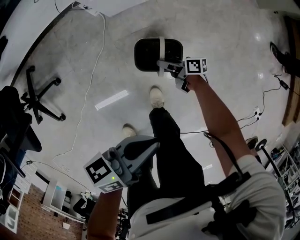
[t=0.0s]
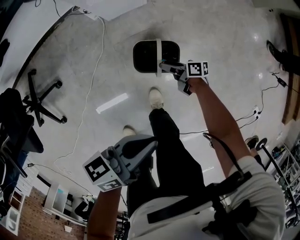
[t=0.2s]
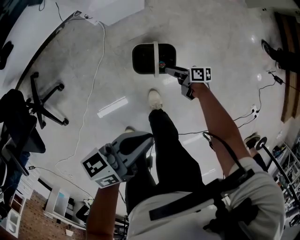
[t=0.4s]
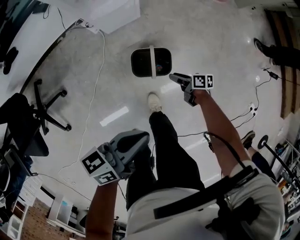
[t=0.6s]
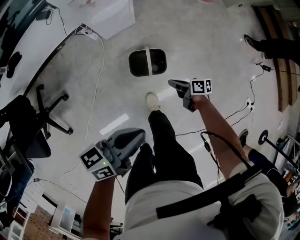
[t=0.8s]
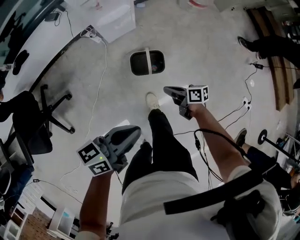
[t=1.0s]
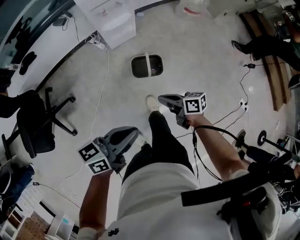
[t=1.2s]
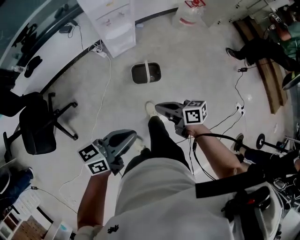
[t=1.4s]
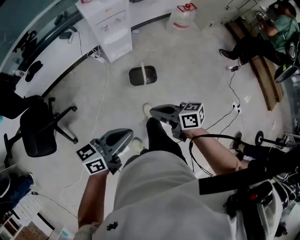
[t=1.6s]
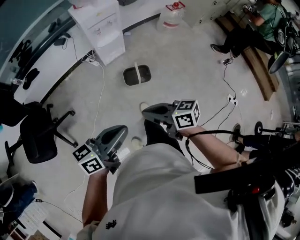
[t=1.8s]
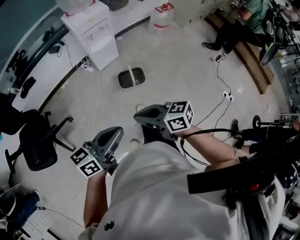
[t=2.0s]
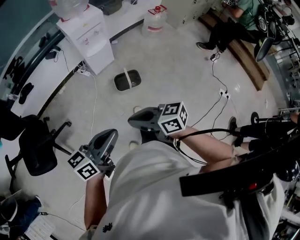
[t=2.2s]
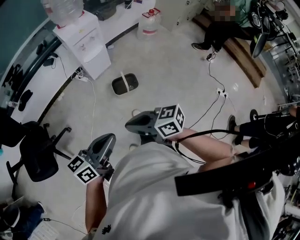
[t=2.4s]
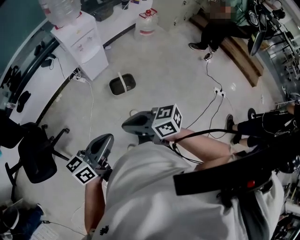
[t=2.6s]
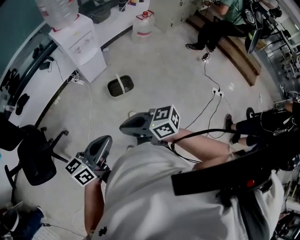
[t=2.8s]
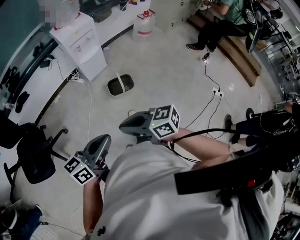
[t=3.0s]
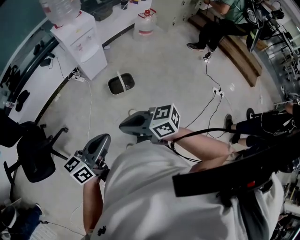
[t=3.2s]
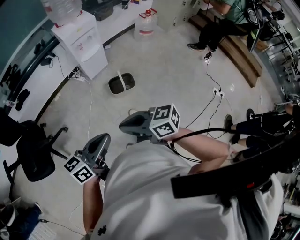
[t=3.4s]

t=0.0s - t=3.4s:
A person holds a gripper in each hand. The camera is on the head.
t=0.0s - t=1.6s: The left gripper heads upward, covering approximately 25 cm, and rotates some 20 degrees. Meanwhile the right gripper heads upward, covering roughly 50 cm, changes its angle by roughly 30 degrees, and closes its fingers.
t=1.6s - t=3.4s: The right gripper changes place by roughly 15 cm; the left gripper ends up some 10 cm from where it was.

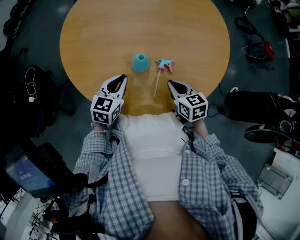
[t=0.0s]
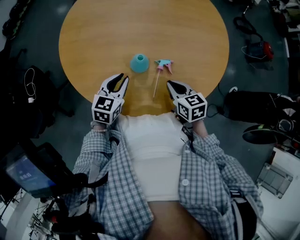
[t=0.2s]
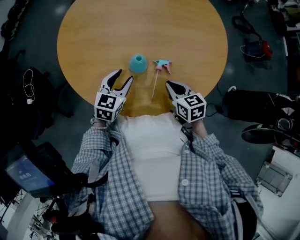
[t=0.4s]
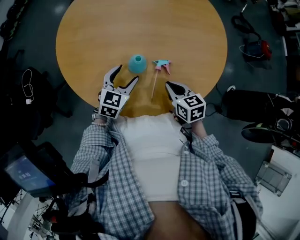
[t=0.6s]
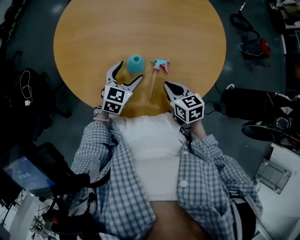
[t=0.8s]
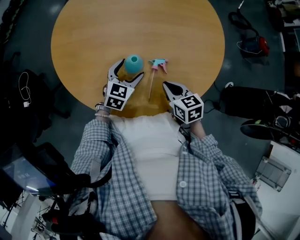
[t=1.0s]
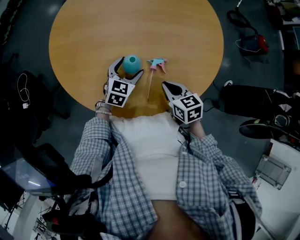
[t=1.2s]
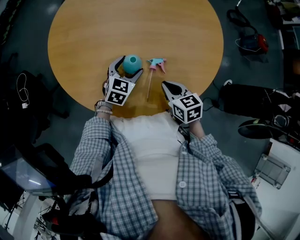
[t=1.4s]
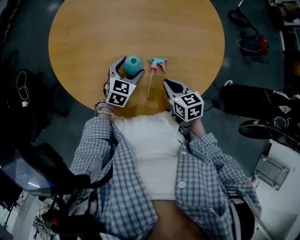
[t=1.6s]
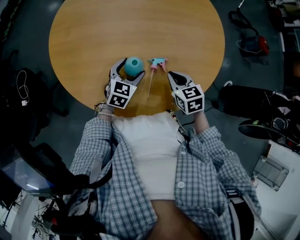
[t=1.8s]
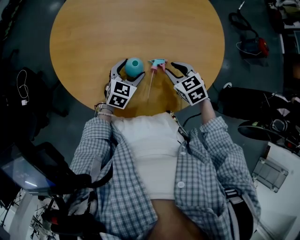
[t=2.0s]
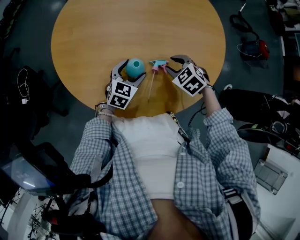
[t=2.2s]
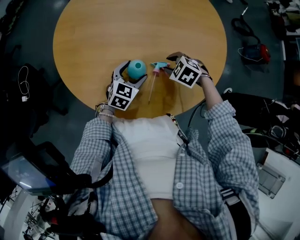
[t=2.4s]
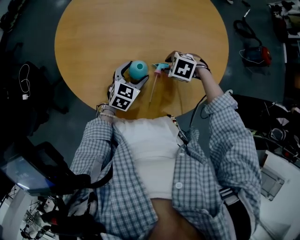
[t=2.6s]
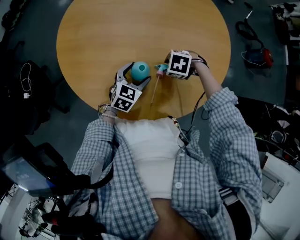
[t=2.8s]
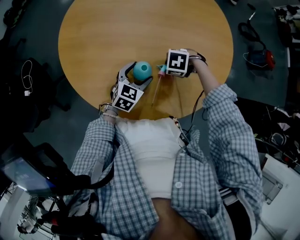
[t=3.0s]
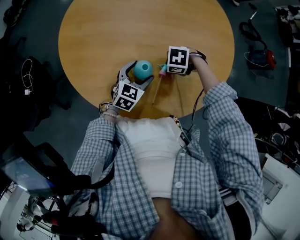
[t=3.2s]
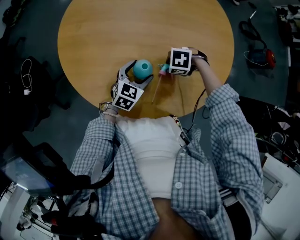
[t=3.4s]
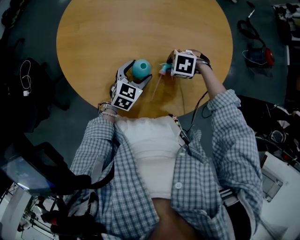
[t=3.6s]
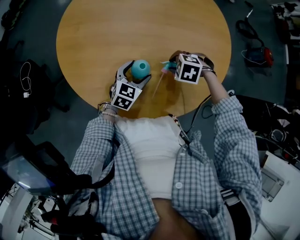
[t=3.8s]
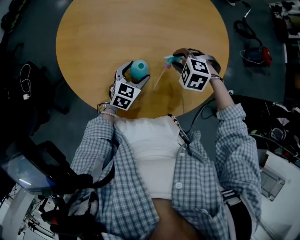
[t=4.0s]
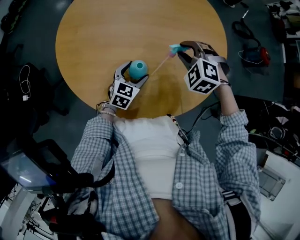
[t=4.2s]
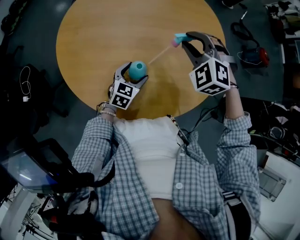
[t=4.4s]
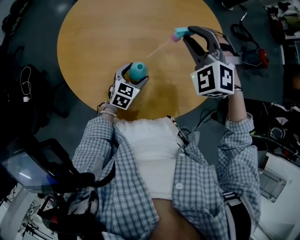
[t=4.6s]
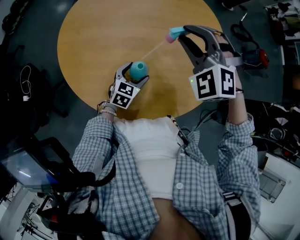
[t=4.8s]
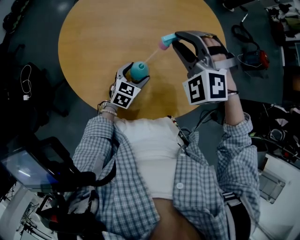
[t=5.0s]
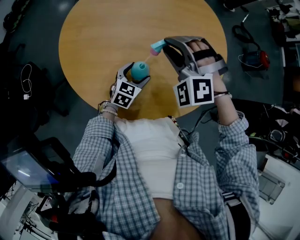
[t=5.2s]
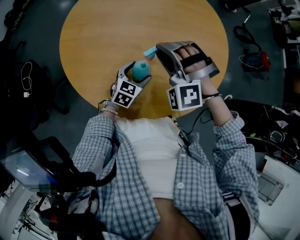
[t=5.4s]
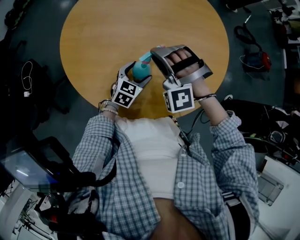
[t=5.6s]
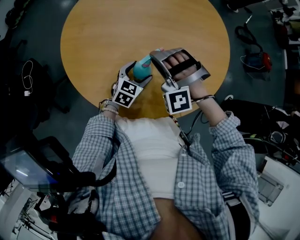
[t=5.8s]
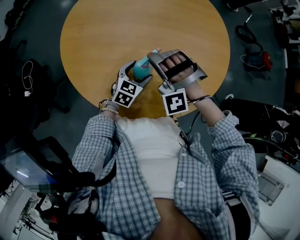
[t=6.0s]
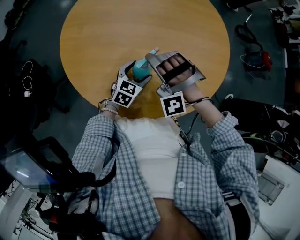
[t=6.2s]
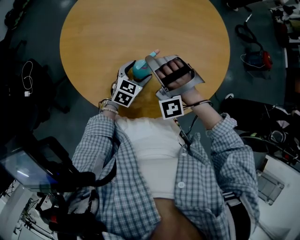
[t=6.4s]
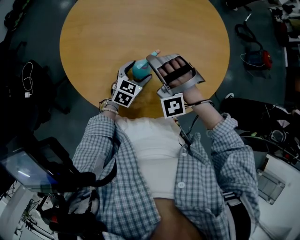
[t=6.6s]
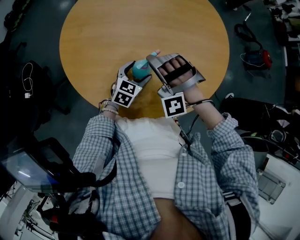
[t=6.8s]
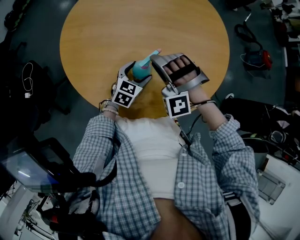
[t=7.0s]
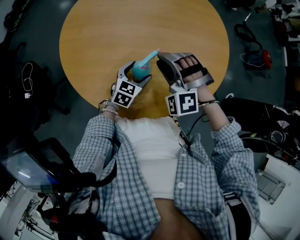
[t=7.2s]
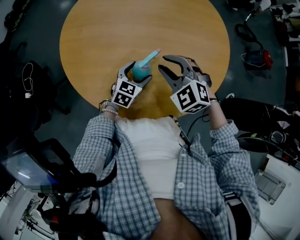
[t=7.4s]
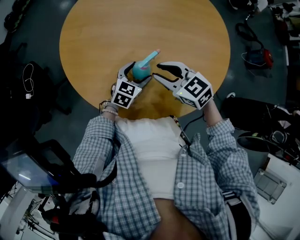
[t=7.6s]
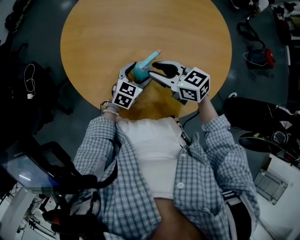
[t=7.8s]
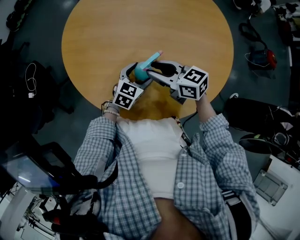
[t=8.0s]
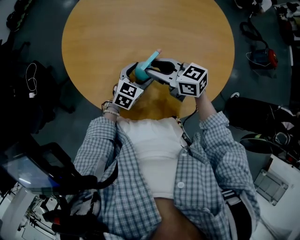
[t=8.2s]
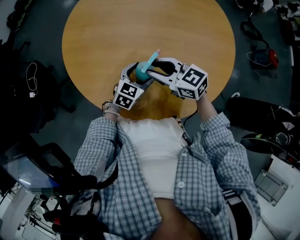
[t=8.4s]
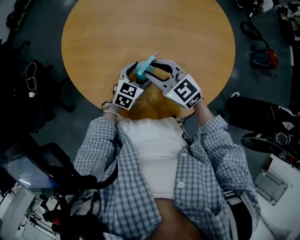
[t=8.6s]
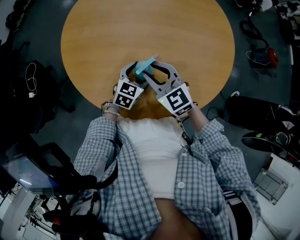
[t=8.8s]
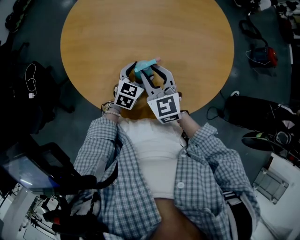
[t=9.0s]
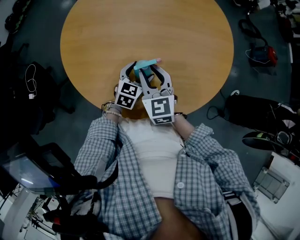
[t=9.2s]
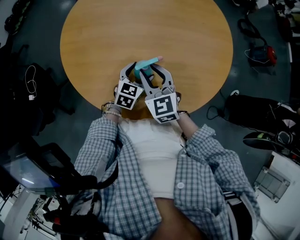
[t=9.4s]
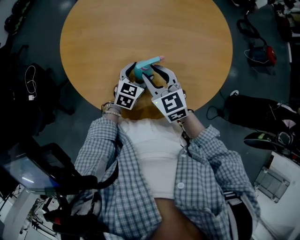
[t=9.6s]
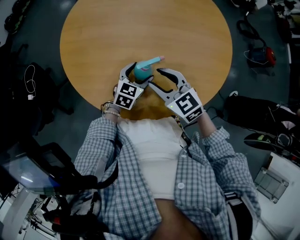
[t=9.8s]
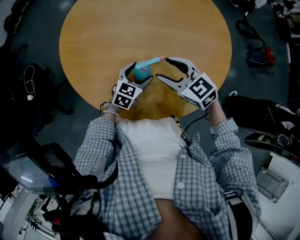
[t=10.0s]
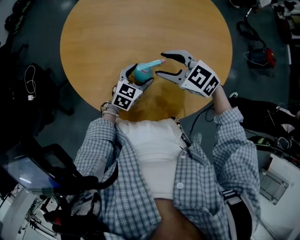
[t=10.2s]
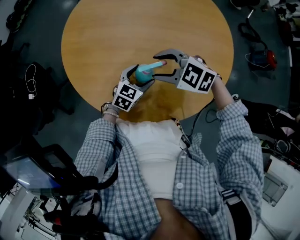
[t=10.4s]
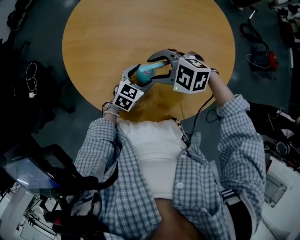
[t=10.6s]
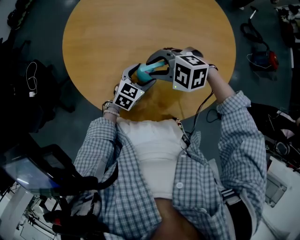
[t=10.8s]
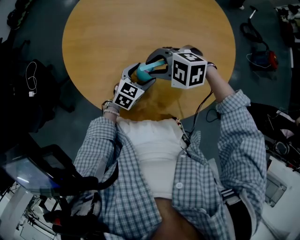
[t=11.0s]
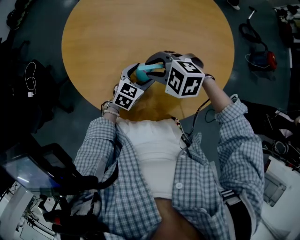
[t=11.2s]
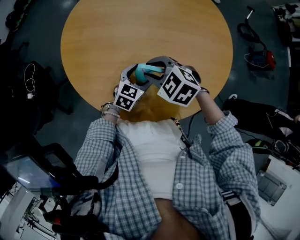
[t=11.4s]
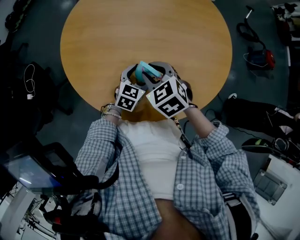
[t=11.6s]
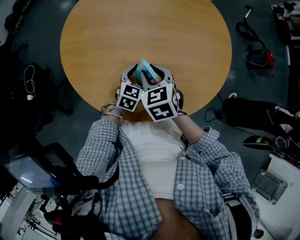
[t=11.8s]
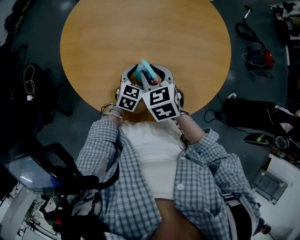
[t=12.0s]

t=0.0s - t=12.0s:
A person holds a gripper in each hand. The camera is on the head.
t=0.0s - t=1.6s: The left gripper moves to the right, forward and downward, approximately 10 cm, and opens its fingers.
t=1.6s - t=3.0s: The right gripper ends up roughly 10 cm from where it was, tilts its fingers approximately 30 degrees downward, and opens.
t=3.0s - t=4.4s: The right gripper is displaced upward by some 25 cm, and points its fingers about 40 degrees further upward.
t=4.4s - t=6.0s: The right gripper goes roughly 15 cm to the left, backward and downward, and turns by about 40 degrees.
t=6.0s - t=7.6s: The right gripper rolls clockwise, seen from behind, by about 80 degrees.
t=7.6s - t=9.0s: The right gripper rotates roughly 30 degrees.
t=9.0s - t=10.4s: The right gripper changes its angle by approximately 50 degrees, and opens its fingers.
t=10.4s - t=12.0s: The right gripper turns by about 50 degrees, and closes up.

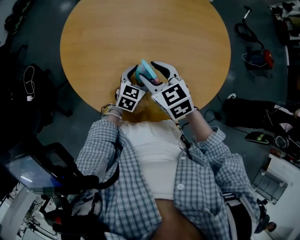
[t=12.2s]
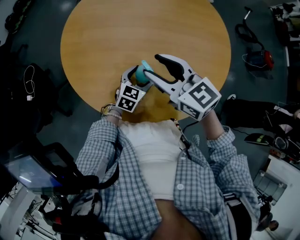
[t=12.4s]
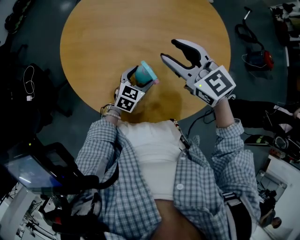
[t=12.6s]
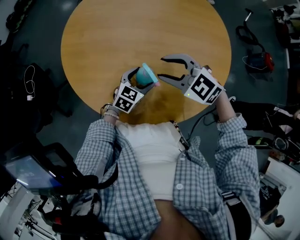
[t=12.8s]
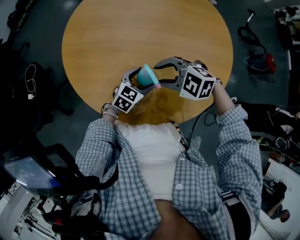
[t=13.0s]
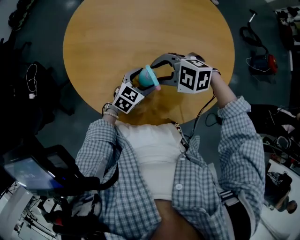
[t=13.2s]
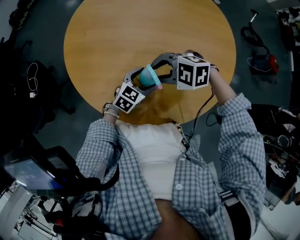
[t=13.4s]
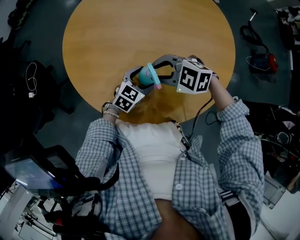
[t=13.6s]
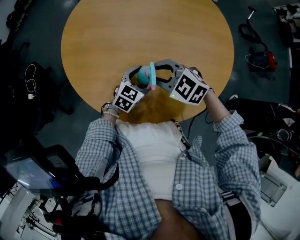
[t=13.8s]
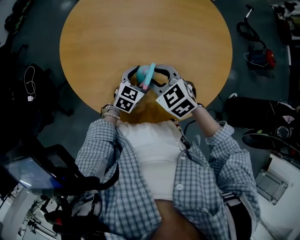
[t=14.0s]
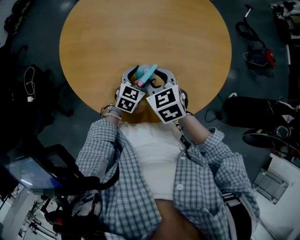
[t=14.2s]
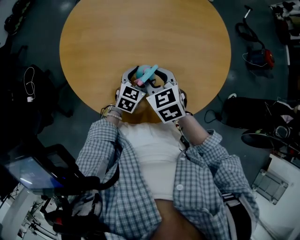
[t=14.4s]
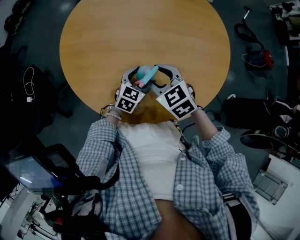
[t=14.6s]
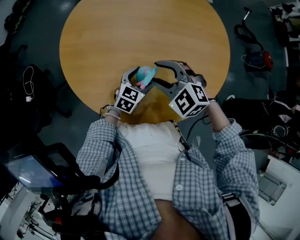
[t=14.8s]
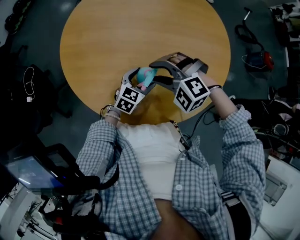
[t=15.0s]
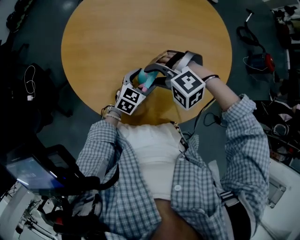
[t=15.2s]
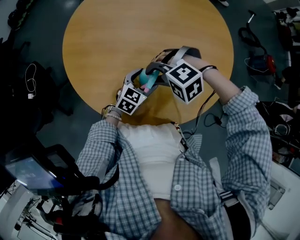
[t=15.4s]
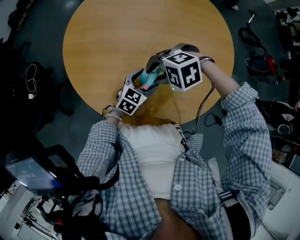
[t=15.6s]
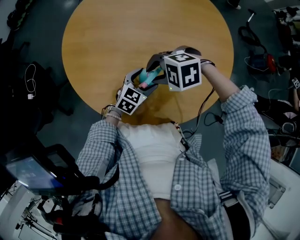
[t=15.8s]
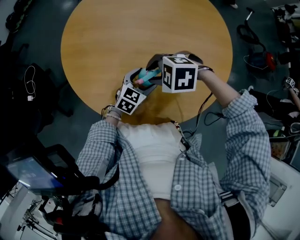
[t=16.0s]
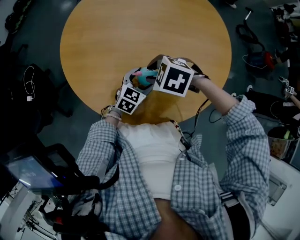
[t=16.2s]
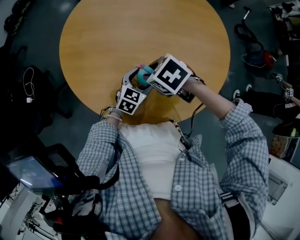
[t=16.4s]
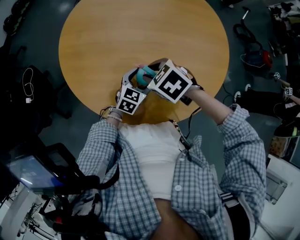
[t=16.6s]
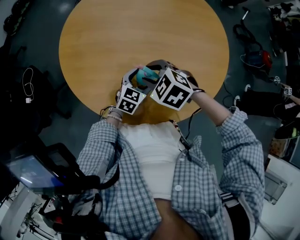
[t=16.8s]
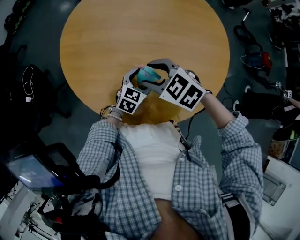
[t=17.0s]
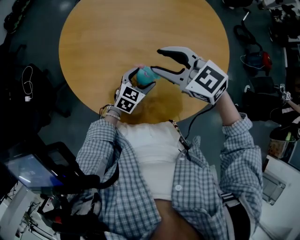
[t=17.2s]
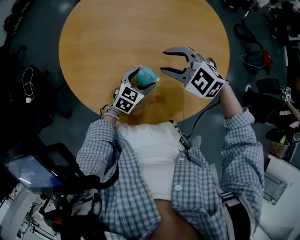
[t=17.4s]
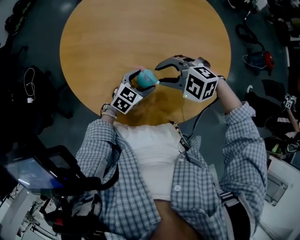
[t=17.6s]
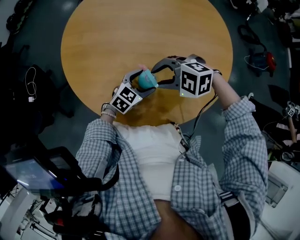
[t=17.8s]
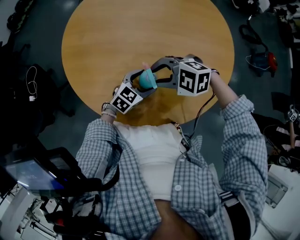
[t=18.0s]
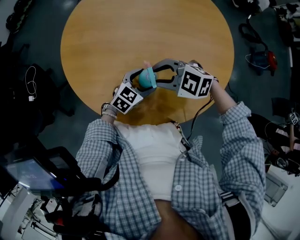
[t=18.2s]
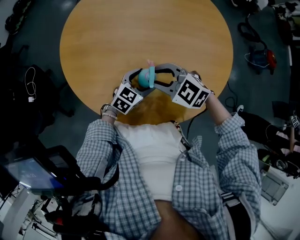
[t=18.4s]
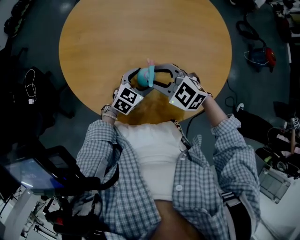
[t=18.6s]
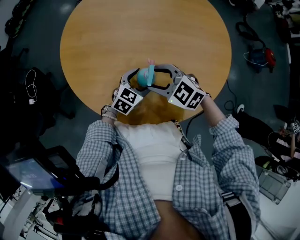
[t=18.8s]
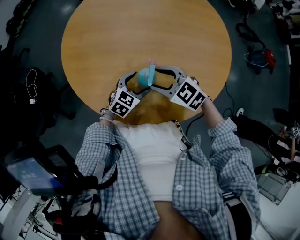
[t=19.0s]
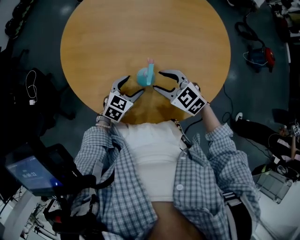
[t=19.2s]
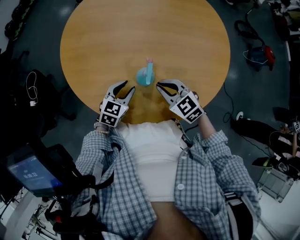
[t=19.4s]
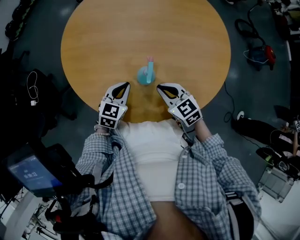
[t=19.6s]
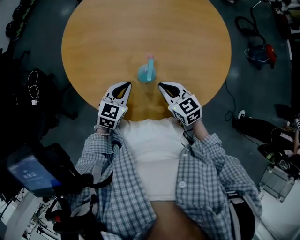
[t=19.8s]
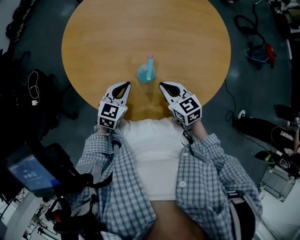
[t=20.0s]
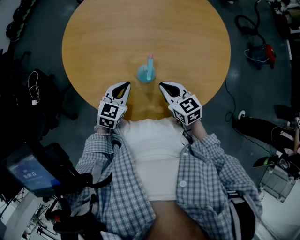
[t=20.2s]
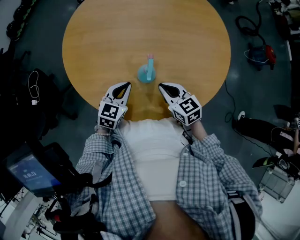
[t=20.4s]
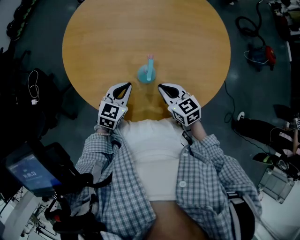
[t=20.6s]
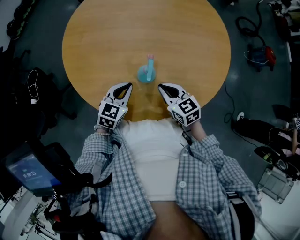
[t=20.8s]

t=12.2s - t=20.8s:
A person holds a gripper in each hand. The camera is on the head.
t=12.2s - t=13.6s: The right gripper travels upward and back again, roughly 10 cm each way, and changes its angle by some 60 degrees.
t=13.6s - t=15.0s: The right gripper swivels some 30 degrees.
t=15.0s - t=16.6s: The right gripper twists some 60 degrees clockwise, seen from behind.
t=16.6s - t=18.0s: The right gripper travels upward and back again, approximately 10 cm each way, and rolls counterclockwise, seen from behind, by roughly 40 degrees.
t=18.0s - t=19.4s: The left gripper shifts by roughly 10 cm, and closes. The right gripper moves roughly 10 cm, rotates some 50 degrees, and closes up.
t=19.4s - t=20.8s: The left gripper closes. The right gripper rotates approximately 20 degrees.
